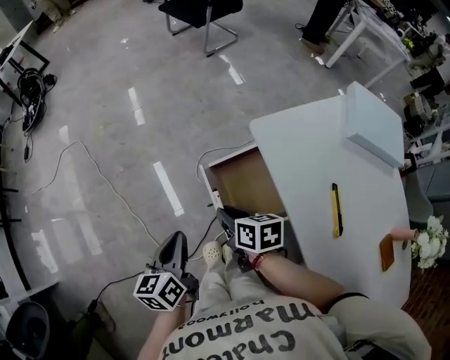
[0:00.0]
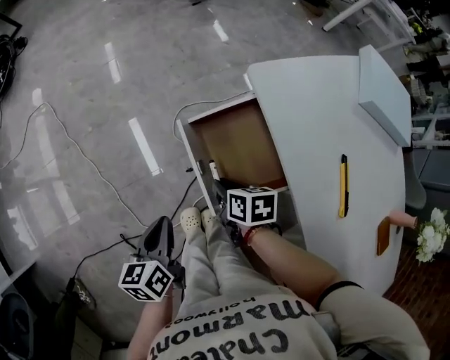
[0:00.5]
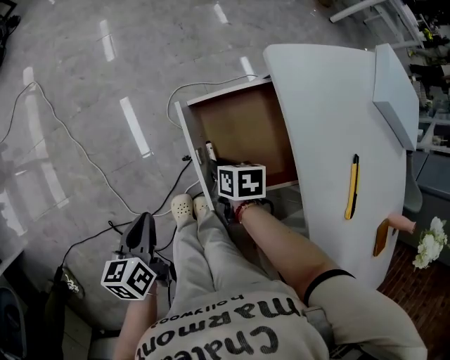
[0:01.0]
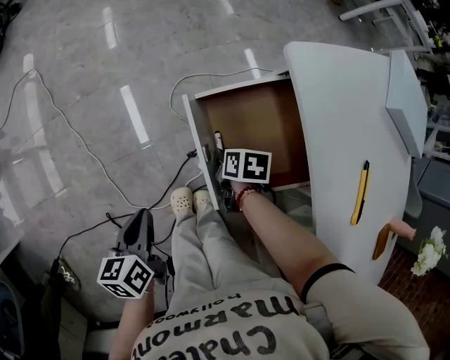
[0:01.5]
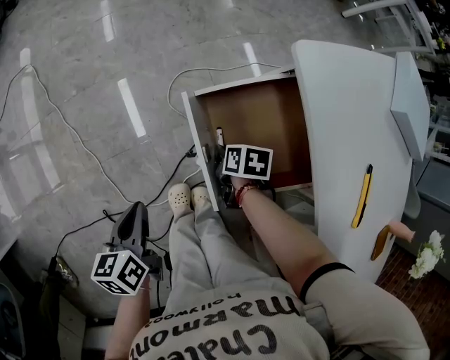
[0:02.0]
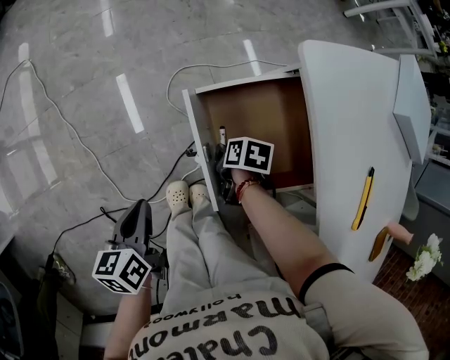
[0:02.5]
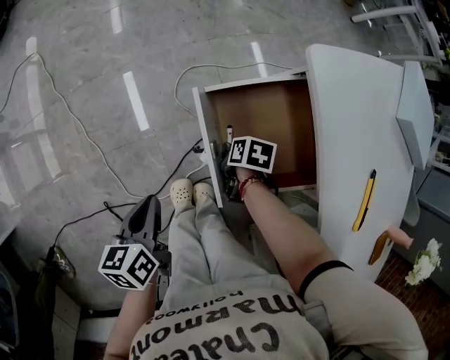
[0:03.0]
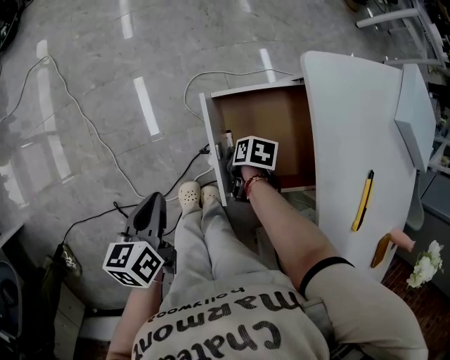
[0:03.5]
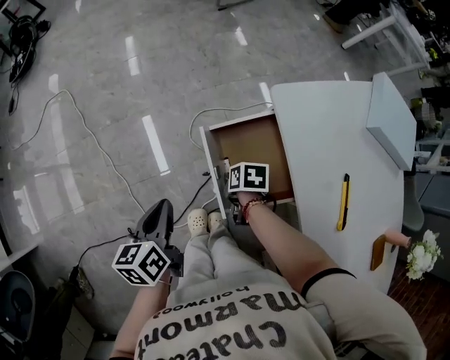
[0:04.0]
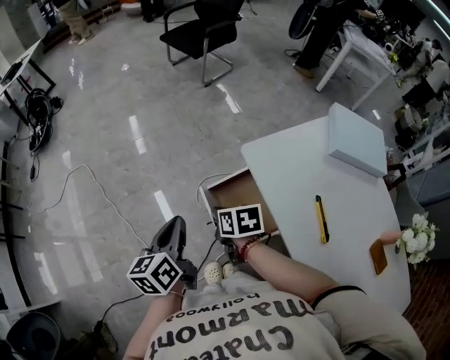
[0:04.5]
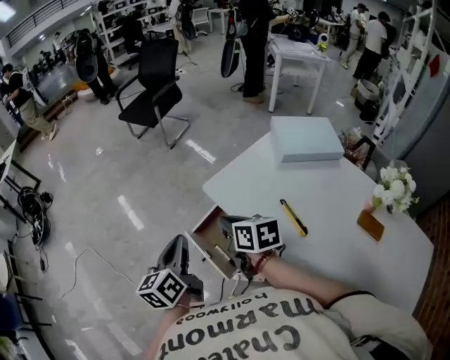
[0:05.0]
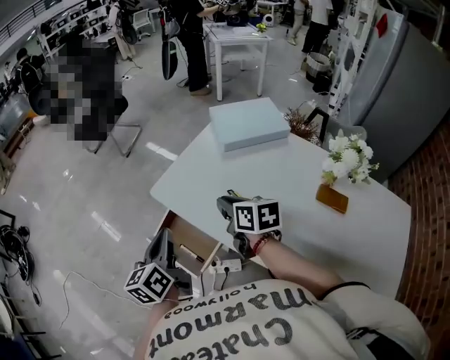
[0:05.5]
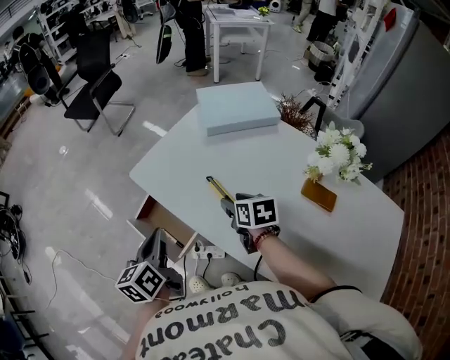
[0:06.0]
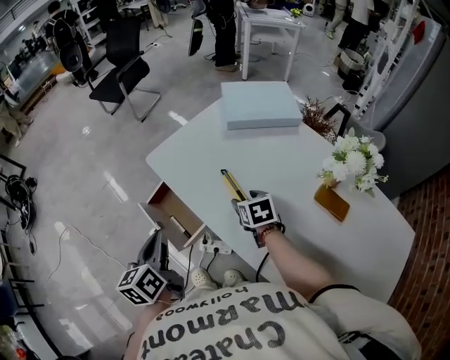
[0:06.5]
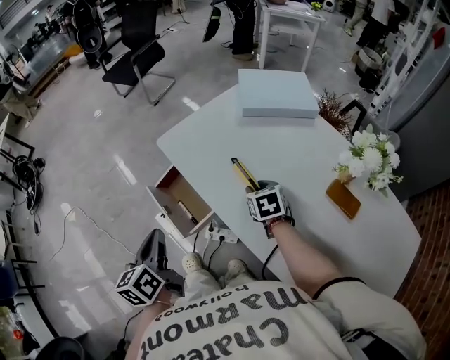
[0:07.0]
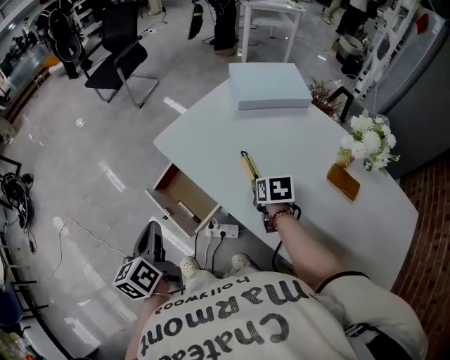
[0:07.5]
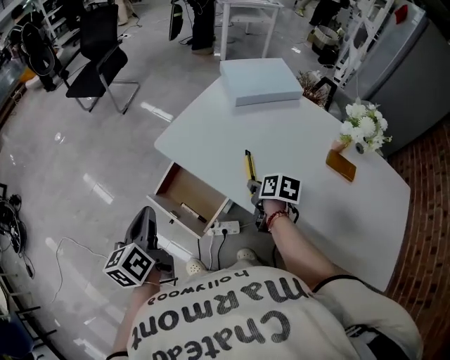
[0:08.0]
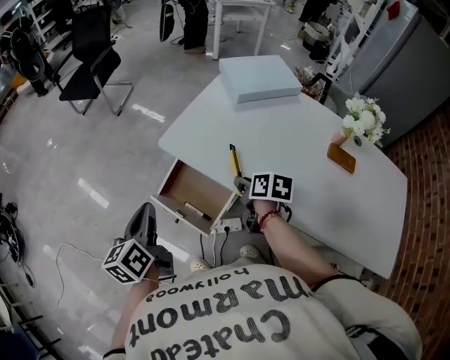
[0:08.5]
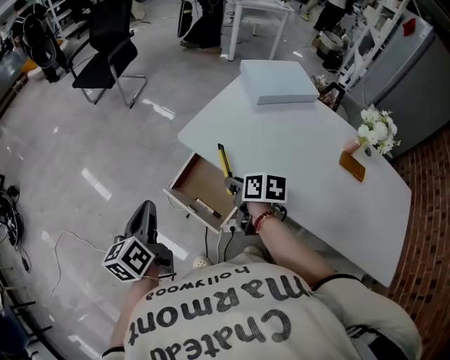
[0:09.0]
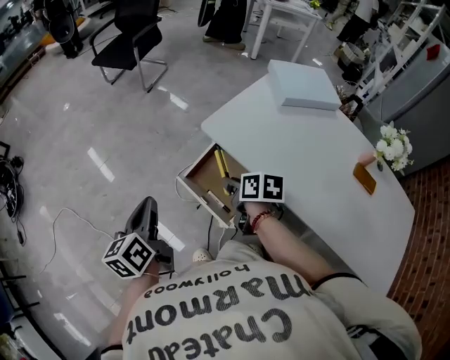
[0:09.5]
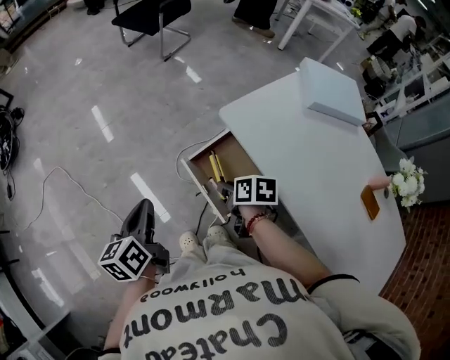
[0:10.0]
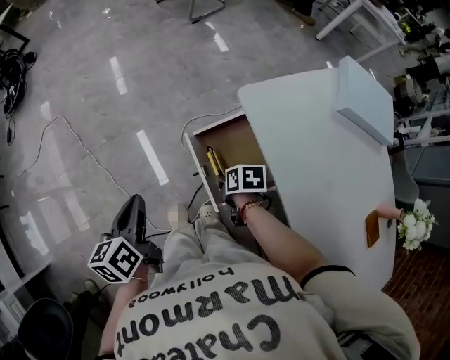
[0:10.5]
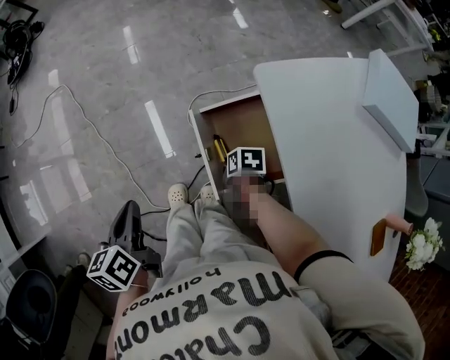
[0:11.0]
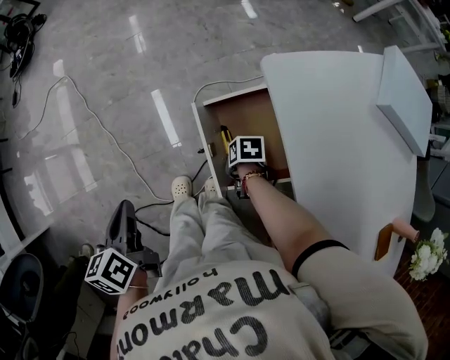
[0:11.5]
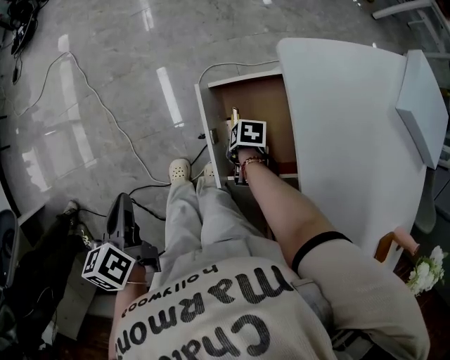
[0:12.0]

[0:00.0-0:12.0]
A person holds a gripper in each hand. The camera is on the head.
0:00.0 to 0:02.0: Both grippers move downward, approximately 20 cm. The right gripper rotates about 30 degrees.
0:02.0 to 0:04.0: Both grippers move upward, approximately 10 cm.
0:04.0 to 0:06.0: The left gripper moves about 35 cm, and swivels roughly 30 degrees. The right gripper ends up some 40 cm from where it was, swivels approximately 40 degrees, and opens.
0:06.0 to 0:08.0: The left gripper shifts approximately 15 cm to the left, while the right gripper goes about 5 cm downward, changes its angle by approximately 30 degrees, and closes.
0:08.0 to 0:10.0: The right gripper moves about 30 cm, and rotates roughly 30 degrees. Meanwhile the left gripper shifts by about 20 cm.
0:10.0 to 0:12.0: The right gripper shifts some 30 cm downward, and turns by some 40 degrees. The left gripper changes place by some 15 cm, and turns by approximately 30 degrees.

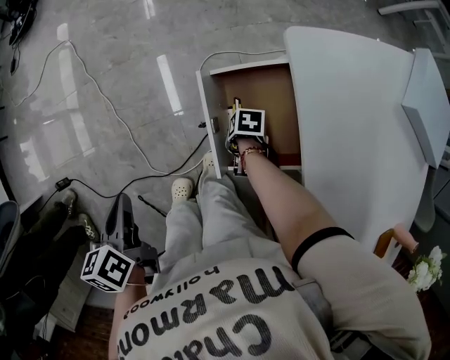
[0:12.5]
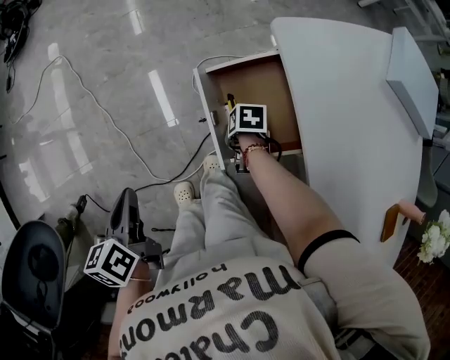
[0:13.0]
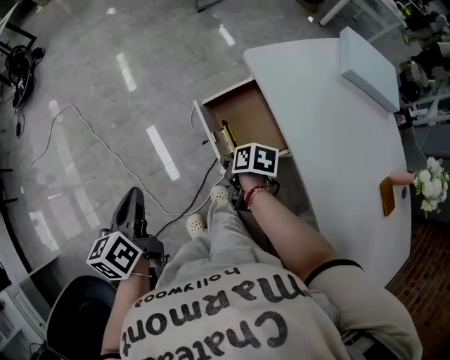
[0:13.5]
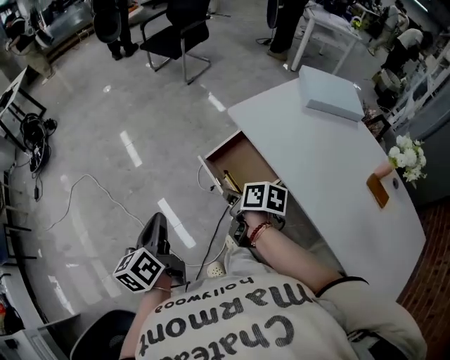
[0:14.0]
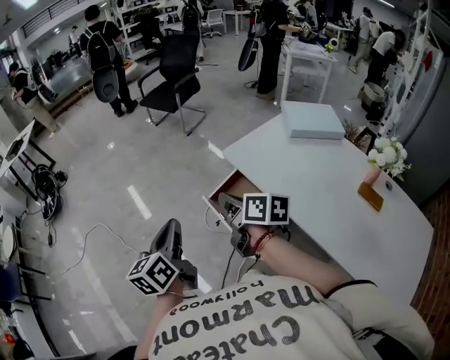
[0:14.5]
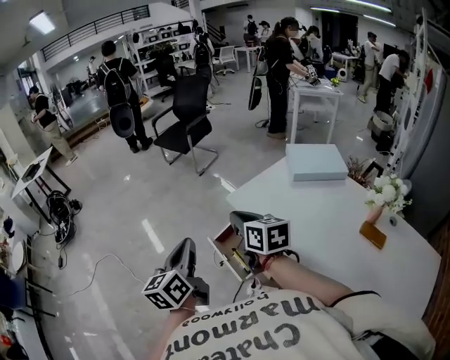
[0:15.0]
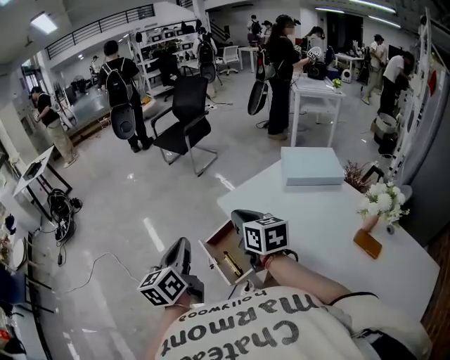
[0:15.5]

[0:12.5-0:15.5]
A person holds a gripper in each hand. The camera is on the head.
0:12.5 to 0:14.0: The right gripper heads upward, covering roughly 35 cm, tilts its fingers some 40 degrees upward, and closes. Meanwhile the left gripper moves upward, roughly 15 cm, and rotates some 40 degrees.
0:14.0 to 0:15.5: The right gripper shifts roughly 25 cm upward and to the right, and swivels approximately 50 degrees. The left gripper moves to the right and upward, about 20 cm.

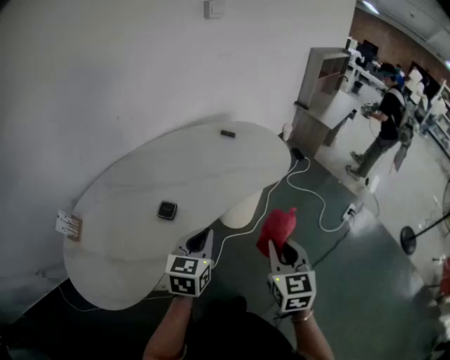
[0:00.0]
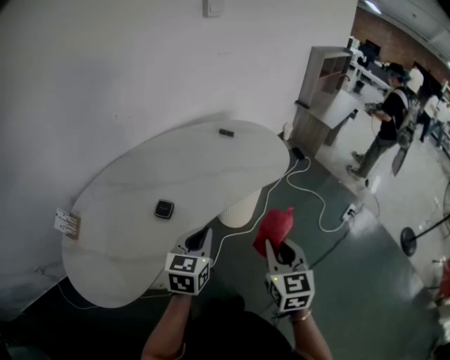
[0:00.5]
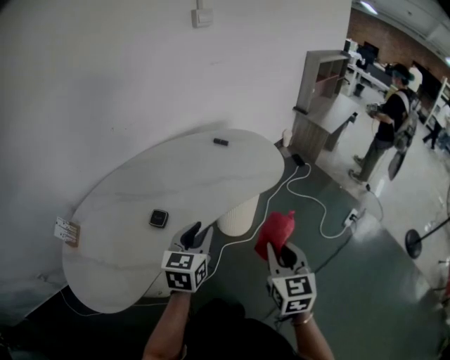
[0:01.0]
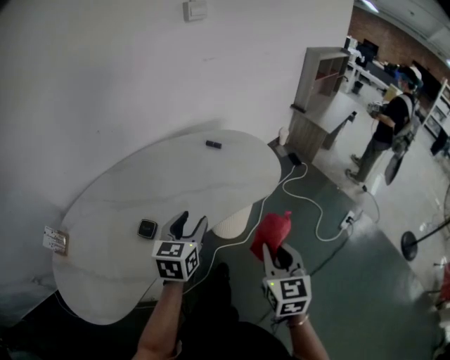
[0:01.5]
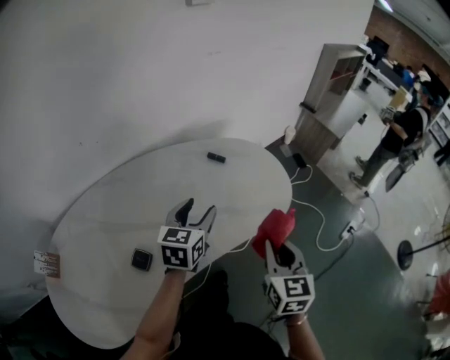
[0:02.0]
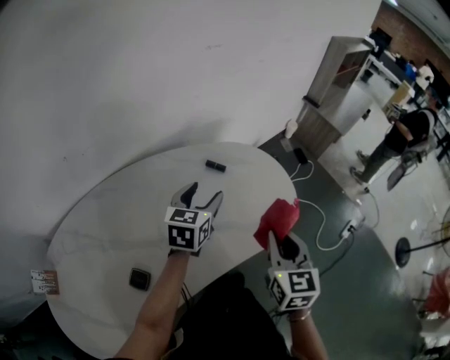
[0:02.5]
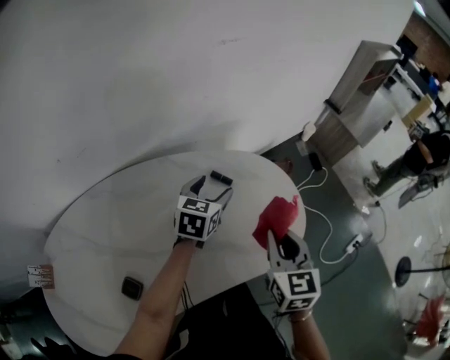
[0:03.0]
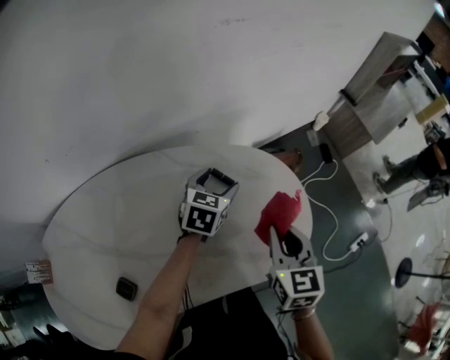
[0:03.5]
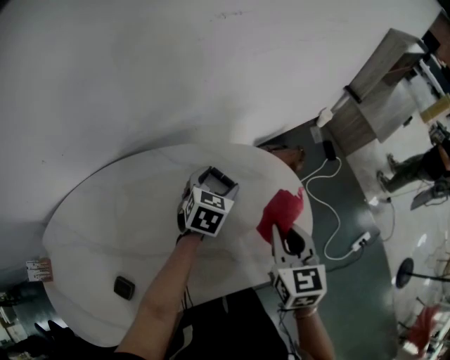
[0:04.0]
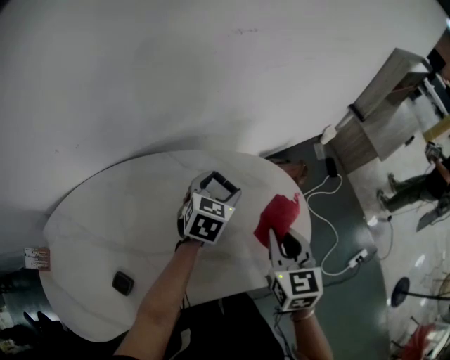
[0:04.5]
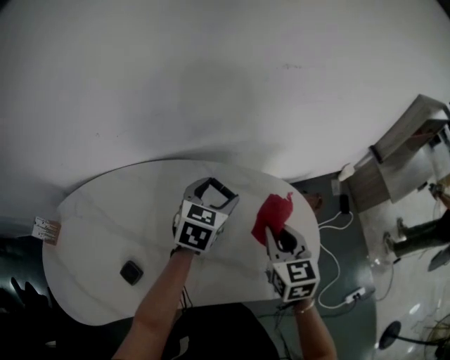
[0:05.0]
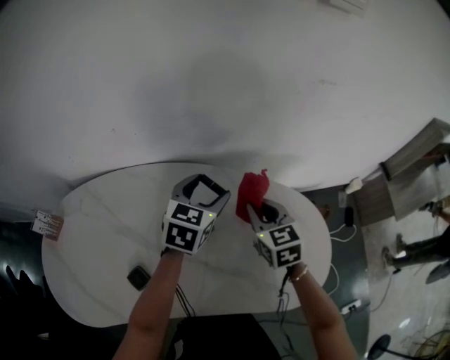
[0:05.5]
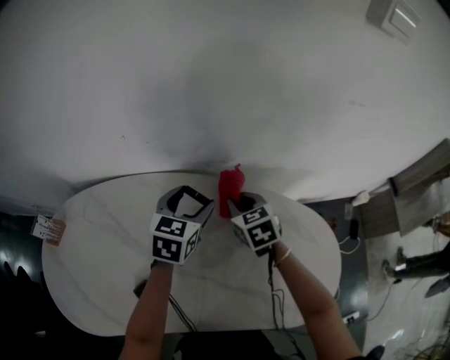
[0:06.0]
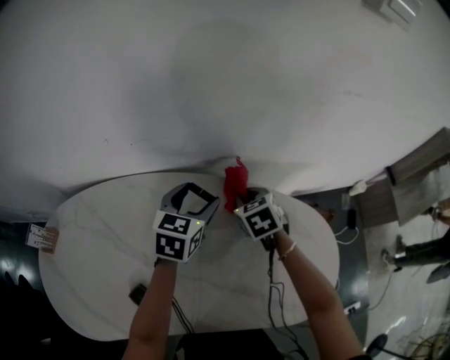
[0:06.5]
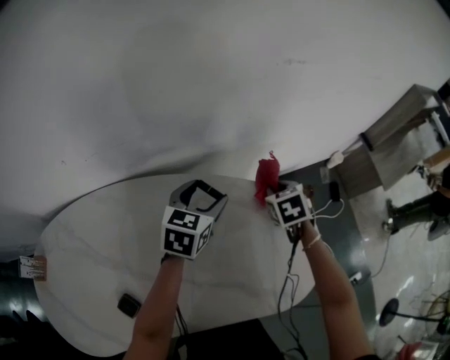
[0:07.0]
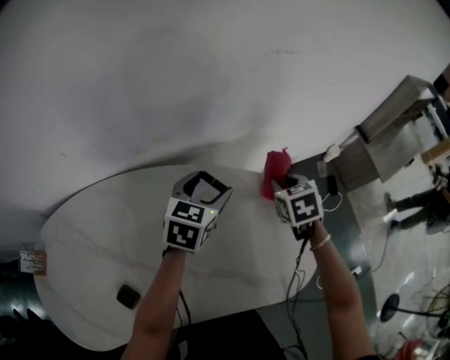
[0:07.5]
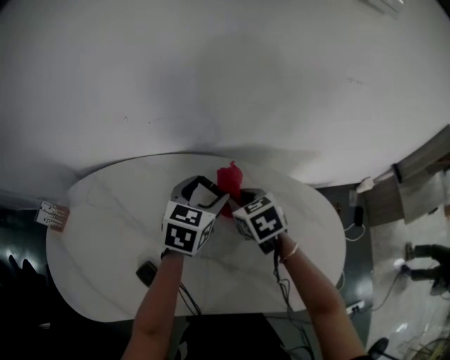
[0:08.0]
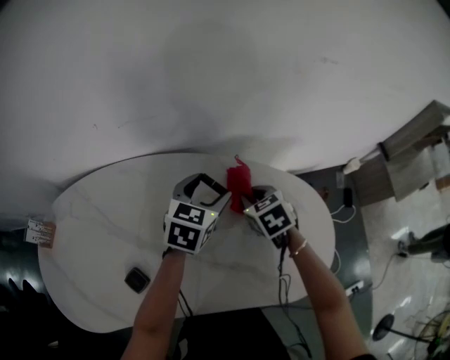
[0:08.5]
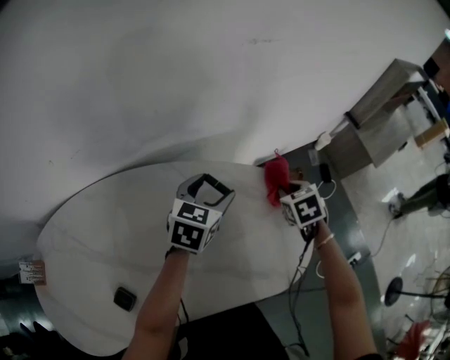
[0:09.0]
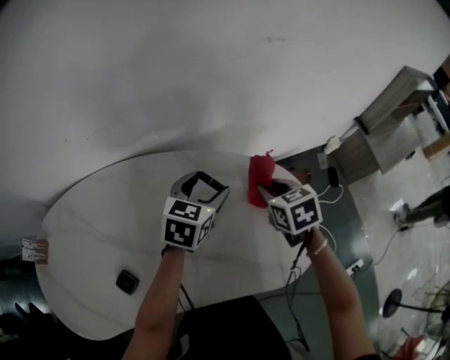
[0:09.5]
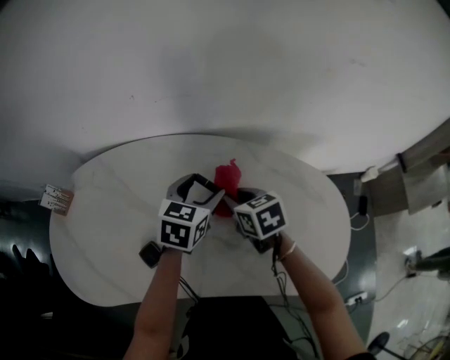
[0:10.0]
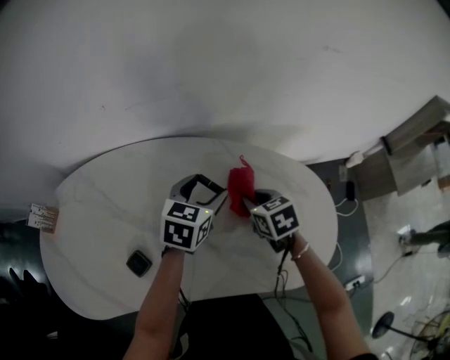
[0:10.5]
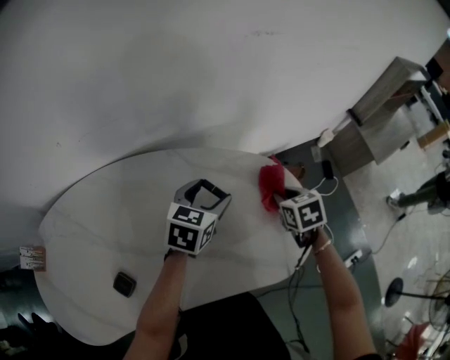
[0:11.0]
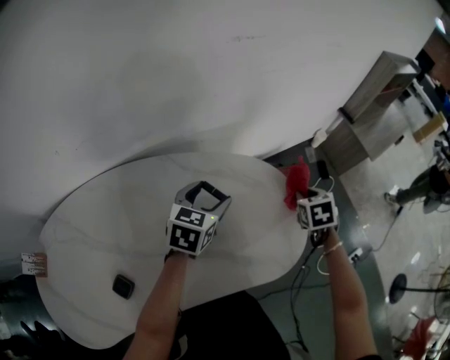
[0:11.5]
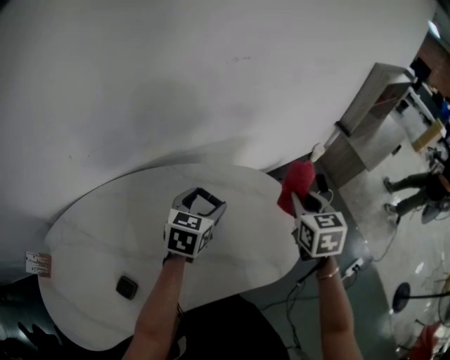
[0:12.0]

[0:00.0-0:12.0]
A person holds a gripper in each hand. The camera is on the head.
0:00.0 to 0:02.0: The grippers both shift forward by about 25 cm. The left gripper opens its fingers.
0:02.0 to 0:04.0: The left gripper shifts some 25 cm forward and downward, and turns by some 20 degrees. The right gripper goes roughly 25 cm forward.
0:04.0 to 0:06.0: The right gripper shifts by approximately 35 cm, and rotates roughly 40 degrees; the left gripper moves some 30 cm, and swivels roughly 30 degrees.
0:10.0 to 0:12.0: The right gripper changes place by some 40 cm, and swivels about 50 degrees, while the left gripper moves approximately 20 cm, and swivels approximately 20 degrees.
